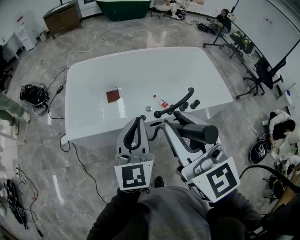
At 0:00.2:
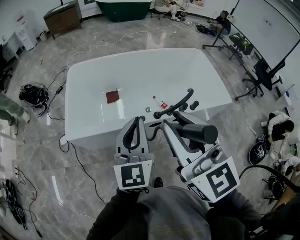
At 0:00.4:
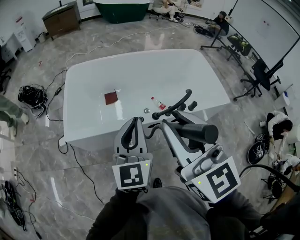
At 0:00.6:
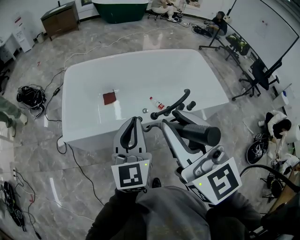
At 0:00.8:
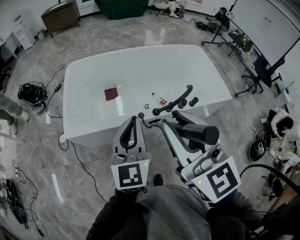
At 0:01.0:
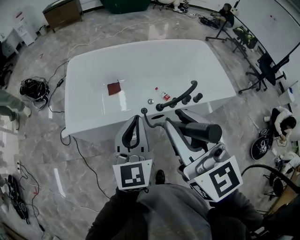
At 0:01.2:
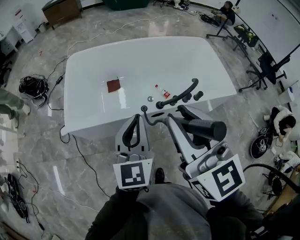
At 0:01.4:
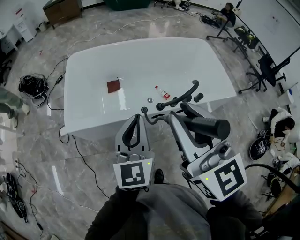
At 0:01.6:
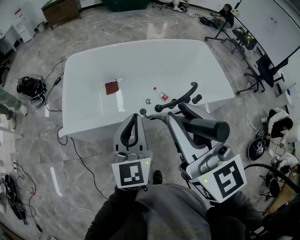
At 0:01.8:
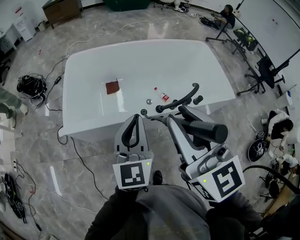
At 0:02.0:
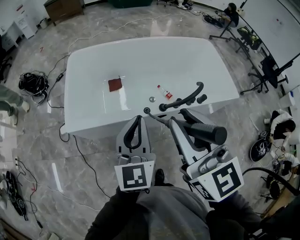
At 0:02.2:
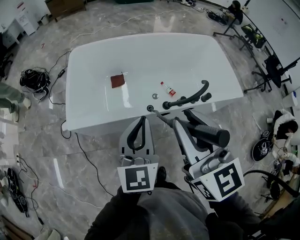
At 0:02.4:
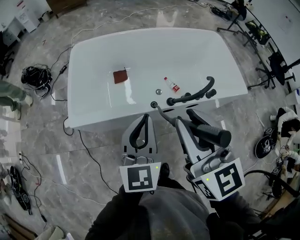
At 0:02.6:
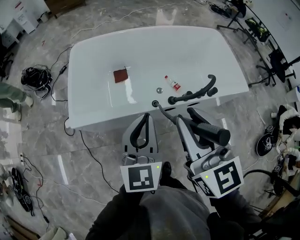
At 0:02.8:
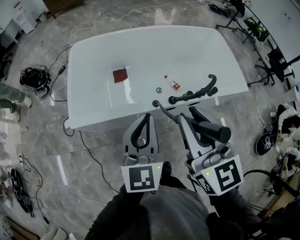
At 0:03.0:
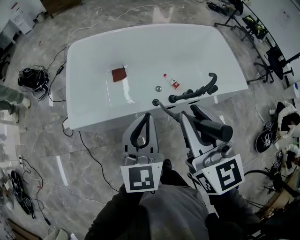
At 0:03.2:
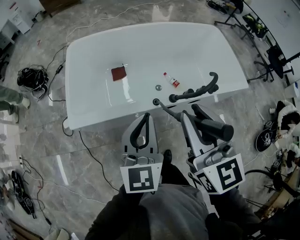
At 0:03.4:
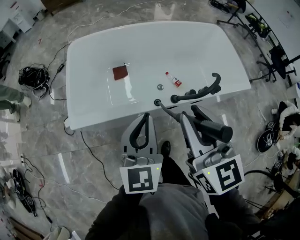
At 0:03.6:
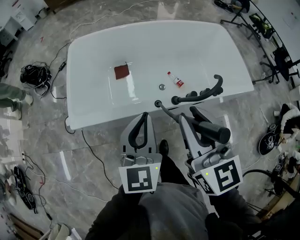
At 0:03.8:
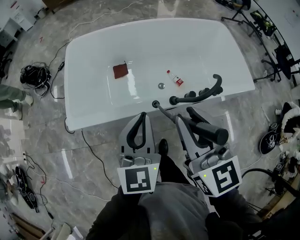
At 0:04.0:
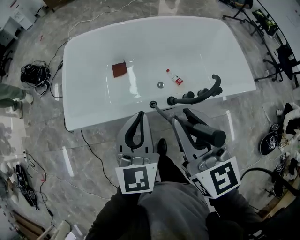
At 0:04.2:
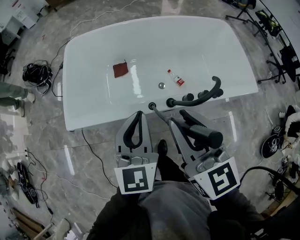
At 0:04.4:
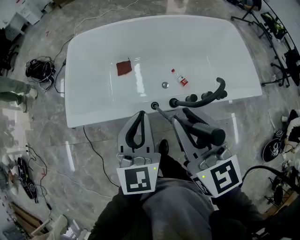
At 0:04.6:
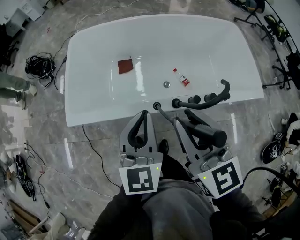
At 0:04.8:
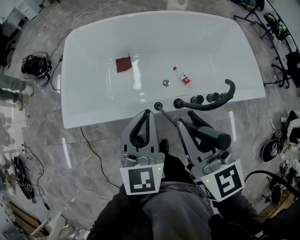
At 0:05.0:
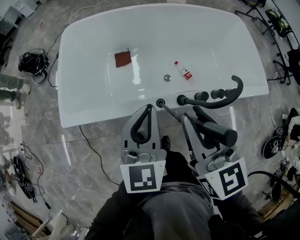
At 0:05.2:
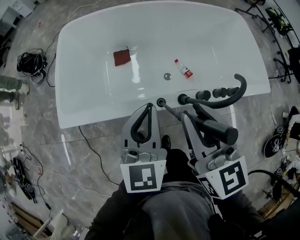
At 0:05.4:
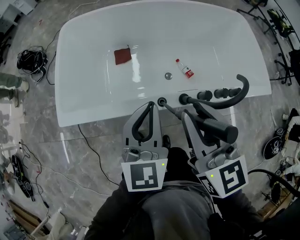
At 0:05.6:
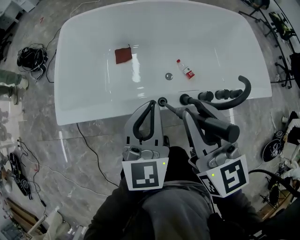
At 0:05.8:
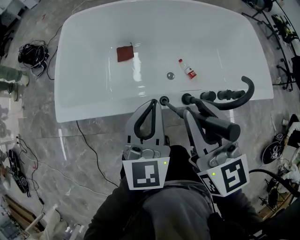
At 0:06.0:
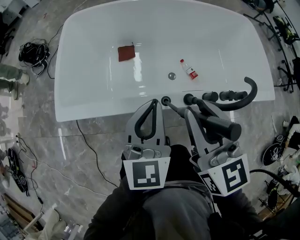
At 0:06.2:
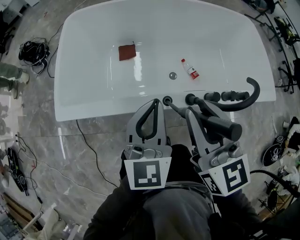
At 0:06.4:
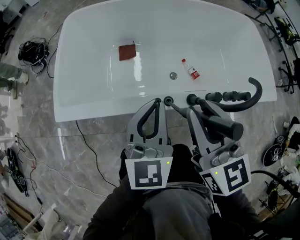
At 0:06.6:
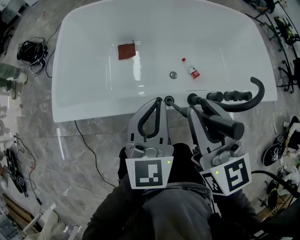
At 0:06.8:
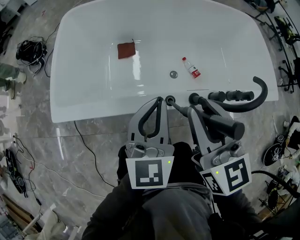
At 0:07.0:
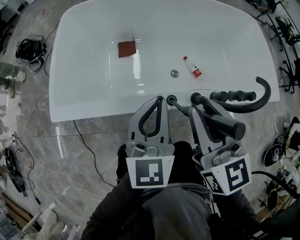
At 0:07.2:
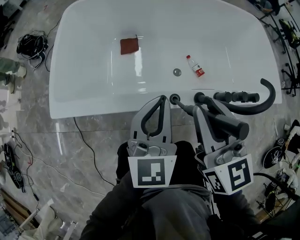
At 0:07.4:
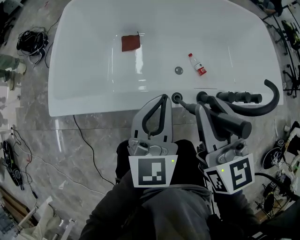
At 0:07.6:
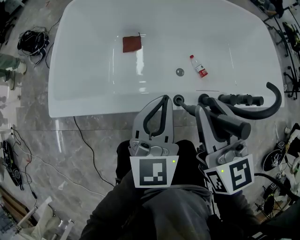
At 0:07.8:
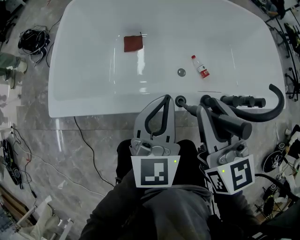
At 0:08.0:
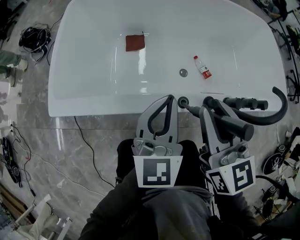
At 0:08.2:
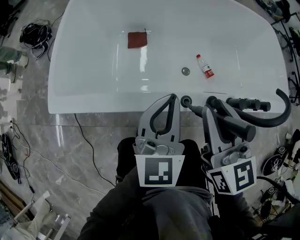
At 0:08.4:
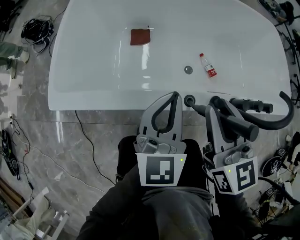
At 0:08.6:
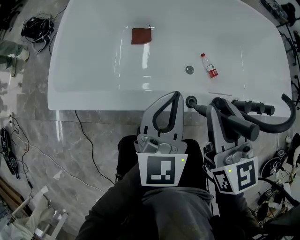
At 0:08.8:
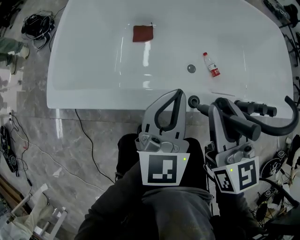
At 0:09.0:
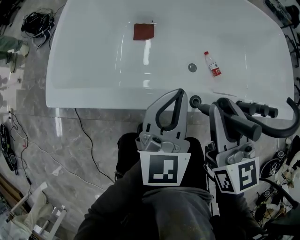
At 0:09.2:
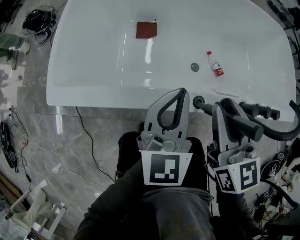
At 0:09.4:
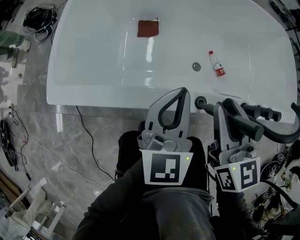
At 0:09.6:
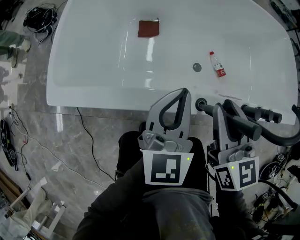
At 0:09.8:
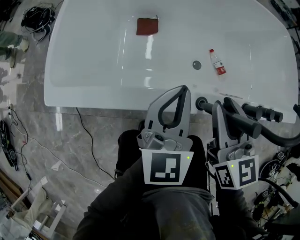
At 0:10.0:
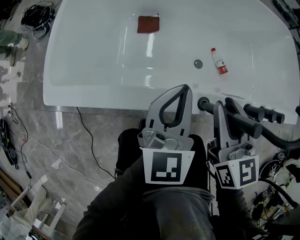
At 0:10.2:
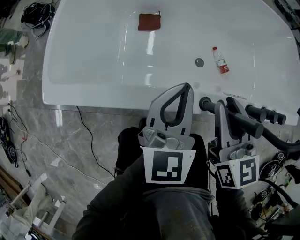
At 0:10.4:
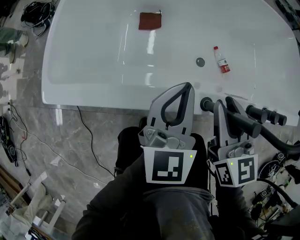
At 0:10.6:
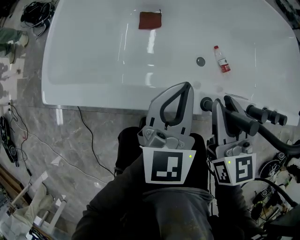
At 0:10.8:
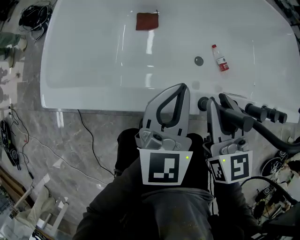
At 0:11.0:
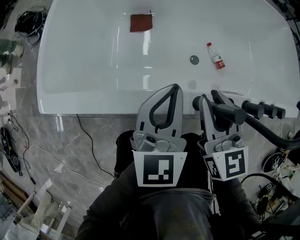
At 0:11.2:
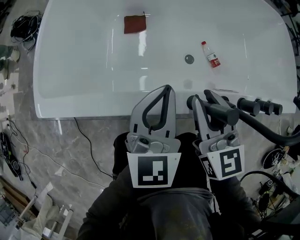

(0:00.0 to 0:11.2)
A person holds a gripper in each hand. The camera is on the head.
0:00.0 - 0:01.6: The grippers move only a little.
0:01.6 - 0:03.2: The left gripper ends up some 5 cm from where it was. Meanwhile the right gripper shifts about 10 cm downward and forward.
0:03.2 - 0:04.8: The left gripper moves forward, downward and to the right, some 10 cm; the right gripper heads downward and forward, covering approximately 10 cm.
0:04.8 - 0:06.4: Both grippers travel together downward, approximately 10 cm.
0:06.4 - 0:08.0: Both grippers move downward, approximately 10 cm.
0:08.0 - 0:09.6: The right gripper goes about 5 cm downward; the left gripper moves some 5 cm.
0:09.6 - 0:11.2: The right gripper changes place by some 5 cm.

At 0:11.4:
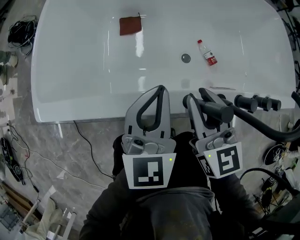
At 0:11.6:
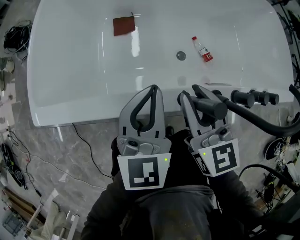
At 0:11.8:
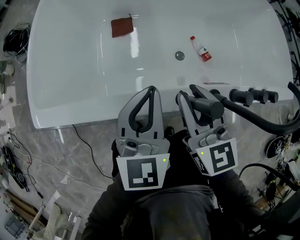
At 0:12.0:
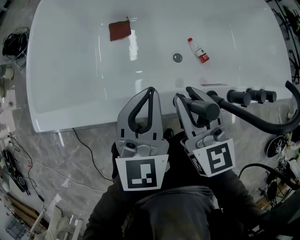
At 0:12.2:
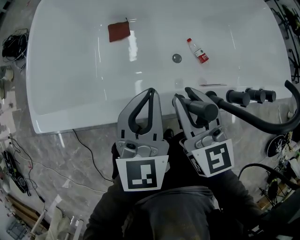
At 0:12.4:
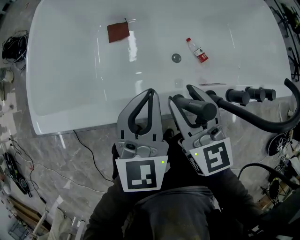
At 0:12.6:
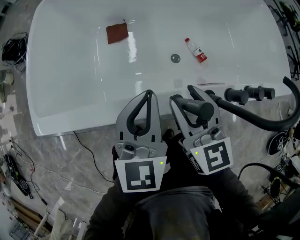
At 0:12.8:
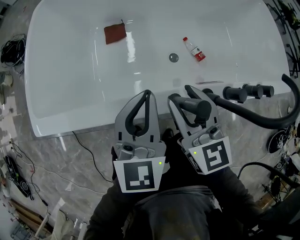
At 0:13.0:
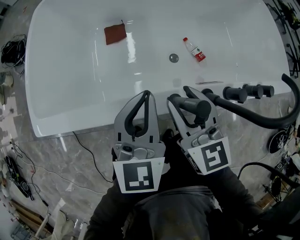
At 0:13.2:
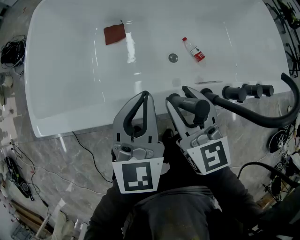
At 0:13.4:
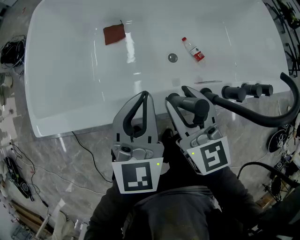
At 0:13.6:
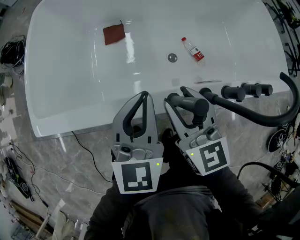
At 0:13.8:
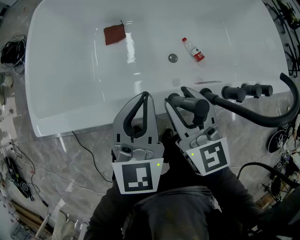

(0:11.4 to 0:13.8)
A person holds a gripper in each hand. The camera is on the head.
0:11.4 - 0:12.6: The grippers stay close to where they were, moving slightly.
0:12.6 - 0:13.8: The two grippers keep their place.

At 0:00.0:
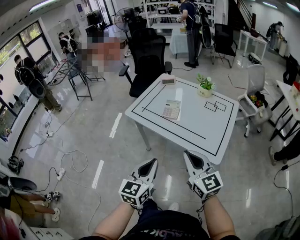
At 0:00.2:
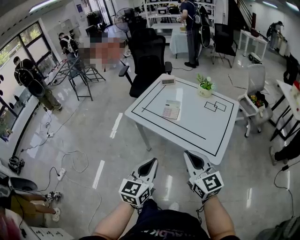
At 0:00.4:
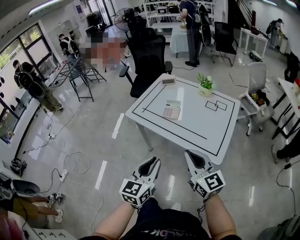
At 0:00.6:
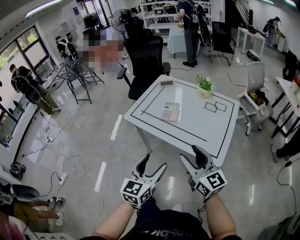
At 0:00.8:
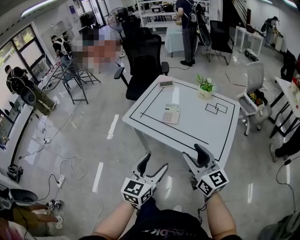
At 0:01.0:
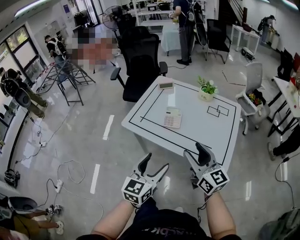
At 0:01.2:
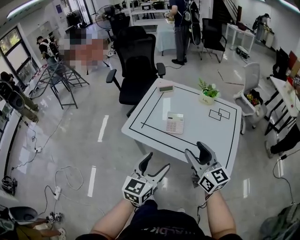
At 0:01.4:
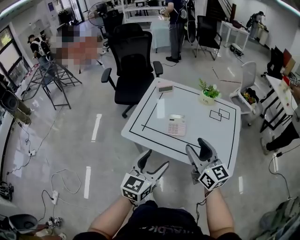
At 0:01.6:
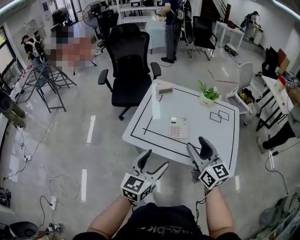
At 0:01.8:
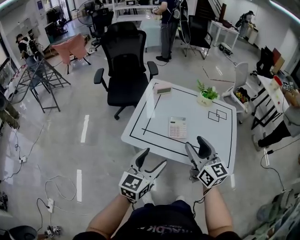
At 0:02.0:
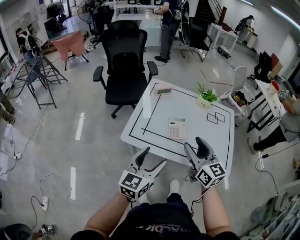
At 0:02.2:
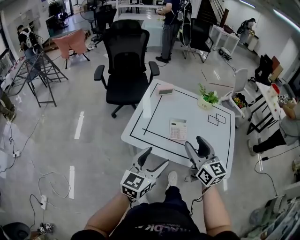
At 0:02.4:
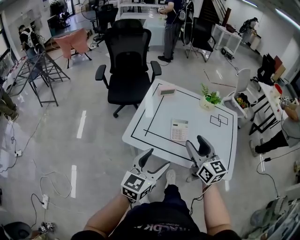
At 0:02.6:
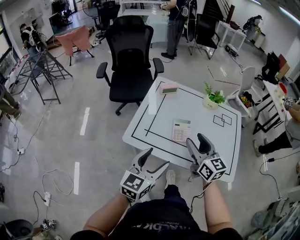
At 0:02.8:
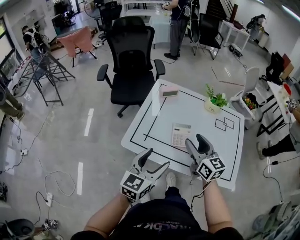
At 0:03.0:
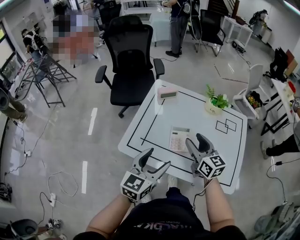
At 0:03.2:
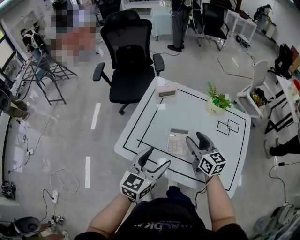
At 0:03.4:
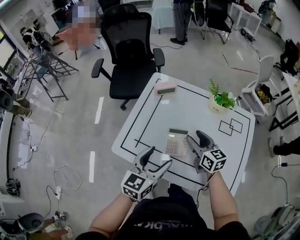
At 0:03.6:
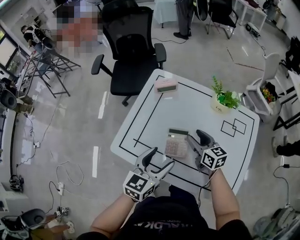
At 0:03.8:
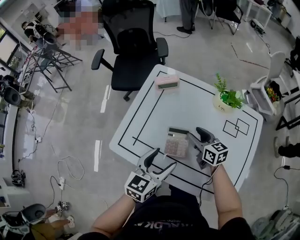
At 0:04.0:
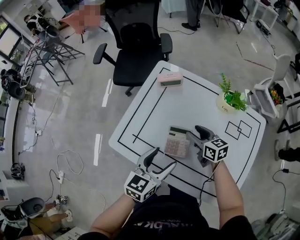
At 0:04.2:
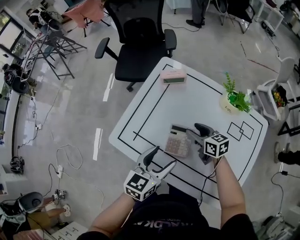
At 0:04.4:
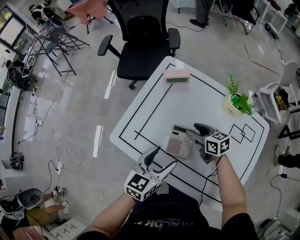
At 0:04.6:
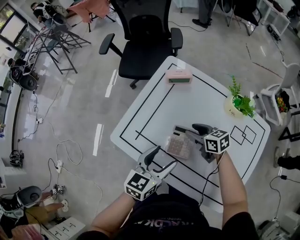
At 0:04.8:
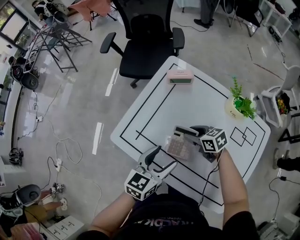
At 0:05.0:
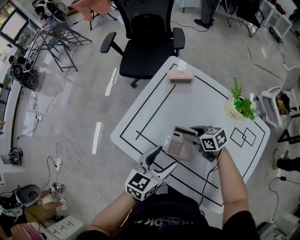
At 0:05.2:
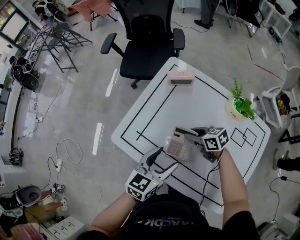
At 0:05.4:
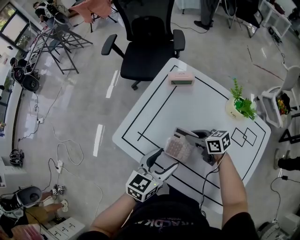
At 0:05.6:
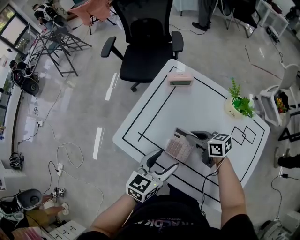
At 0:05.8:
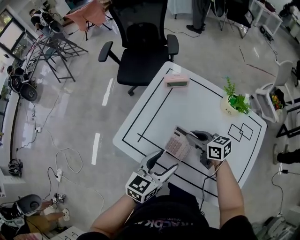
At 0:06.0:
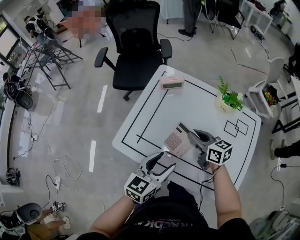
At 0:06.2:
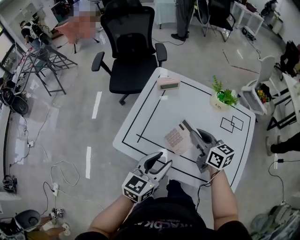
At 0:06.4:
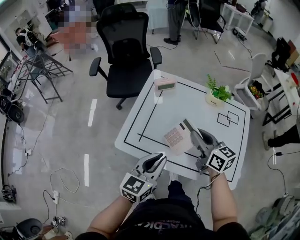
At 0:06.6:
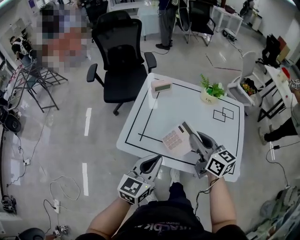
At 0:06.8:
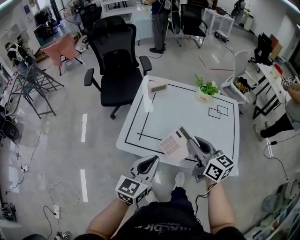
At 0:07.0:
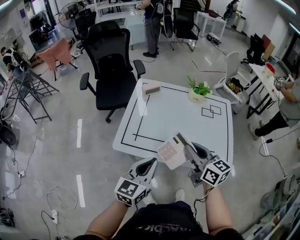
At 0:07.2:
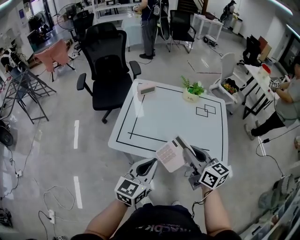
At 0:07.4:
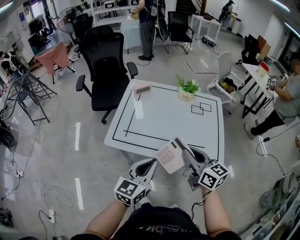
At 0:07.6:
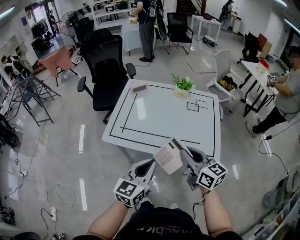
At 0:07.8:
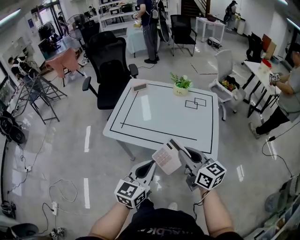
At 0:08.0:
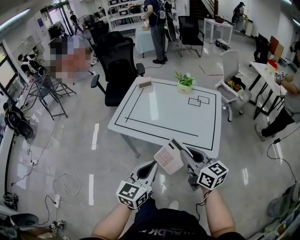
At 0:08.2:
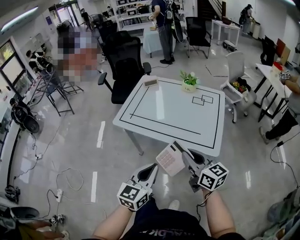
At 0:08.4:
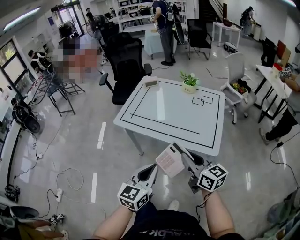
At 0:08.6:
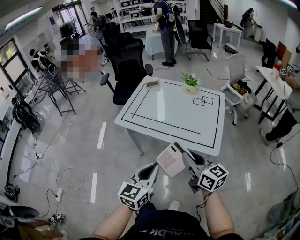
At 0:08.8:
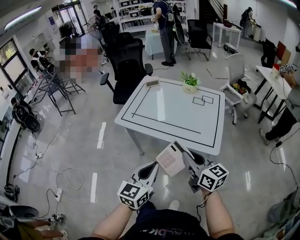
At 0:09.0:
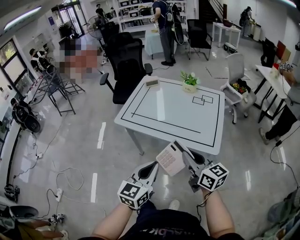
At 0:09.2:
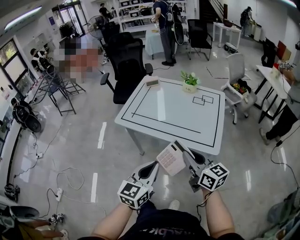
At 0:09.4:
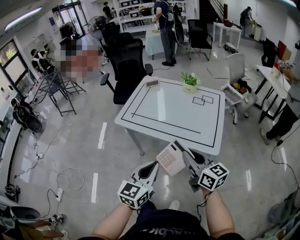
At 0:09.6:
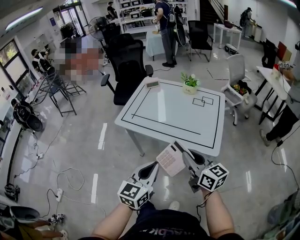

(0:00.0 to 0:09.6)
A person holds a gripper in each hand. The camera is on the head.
0:00.0 - 0:01.6: Both grippers travel together forward and to the left, roughly 25 cm. The right gripper opens up. Meanwhile the left gripper swivels approximately 20 degrees, and opens up.
0:01.6 - 0:03.2: The left gripper goes some 15 cm forward. Meanwhile the right gripper moves forward and downward, roughly 25 cm.
0:03.2 - 0:04.8: The left gripper moves downward, roughly 5 cm, while the right gripper shifts approximately 15 cm downward, and rotates roughly 50 degrees.
0:04.8 - 0:06.4: The right gripper heads upward, covering about 20 cm, turns by roughly 50 degrees, and closes up; the left gripper moves roughly 10 cm, and closes up.
0:06.4 - 0:08.0: The right gripper moves backward, approximately 30 cm. The left gripper moves backward and to the right, roughly 30 cm.
0:08.0 - 0:09.6: The left gripper shifts roughly 5 cm backward. The right gripper moves some 5 cm.
